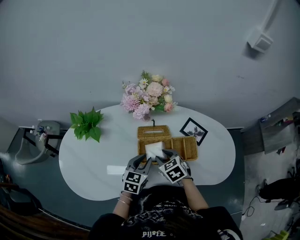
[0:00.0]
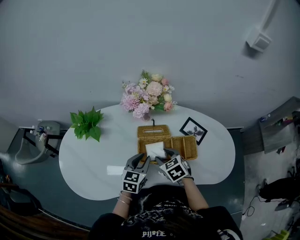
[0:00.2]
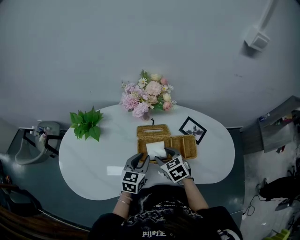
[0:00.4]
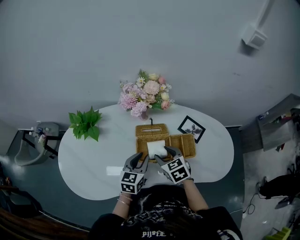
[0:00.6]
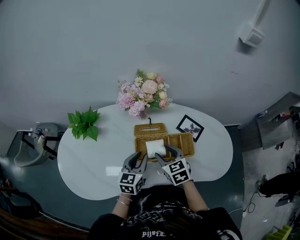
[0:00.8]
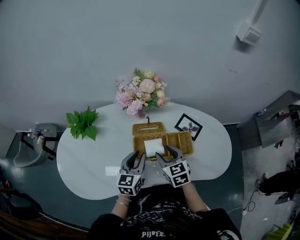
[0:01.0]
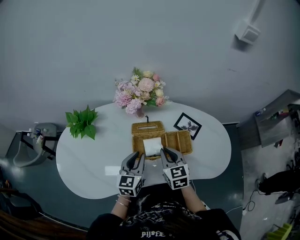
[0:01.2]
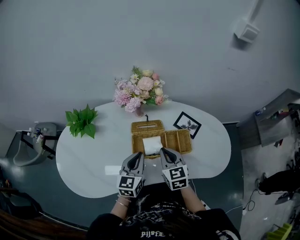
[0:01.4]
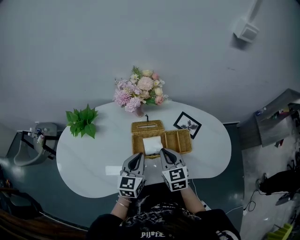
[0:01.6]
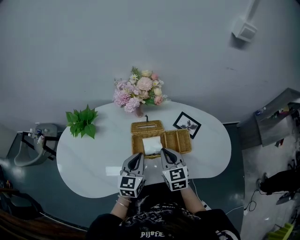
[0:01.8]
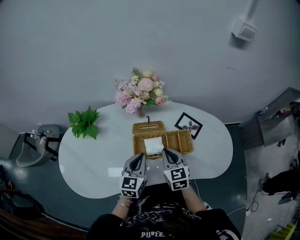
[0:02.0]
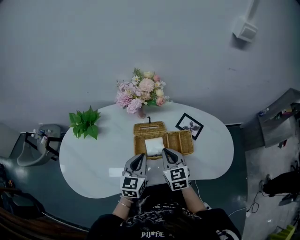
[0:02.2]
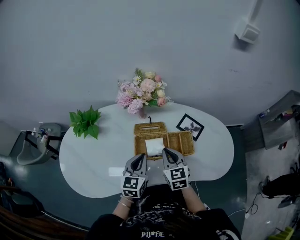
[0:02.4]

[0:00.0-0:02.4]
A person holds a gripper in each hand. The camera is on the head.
0:00.0 to 0:01.2: The right gripper shifts some 5 cm upward, turns by approximately 30 degrees, and closes.
0:01.2 to 0:02.4: The grippers move only a little.

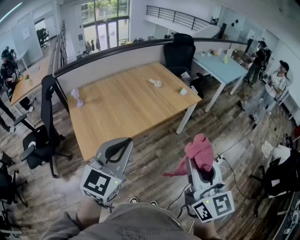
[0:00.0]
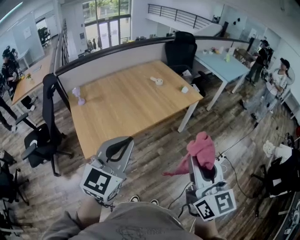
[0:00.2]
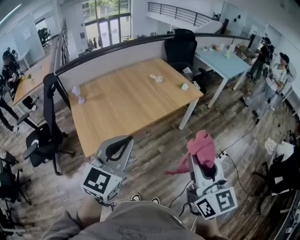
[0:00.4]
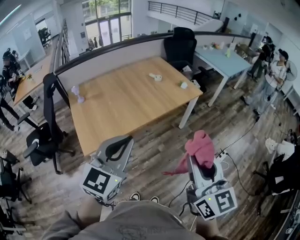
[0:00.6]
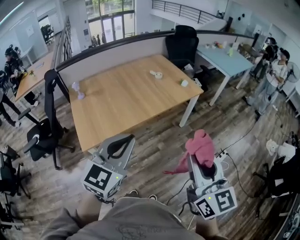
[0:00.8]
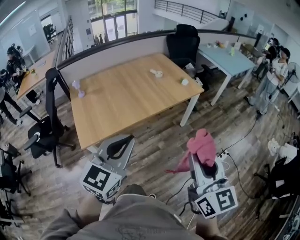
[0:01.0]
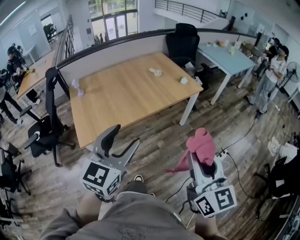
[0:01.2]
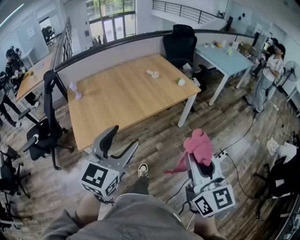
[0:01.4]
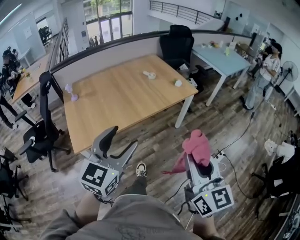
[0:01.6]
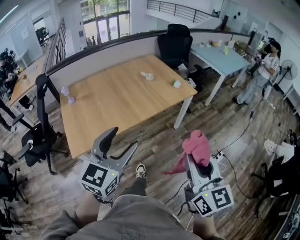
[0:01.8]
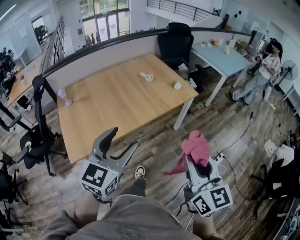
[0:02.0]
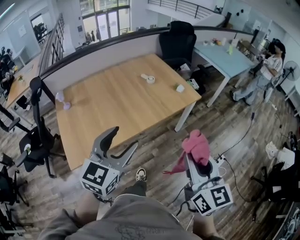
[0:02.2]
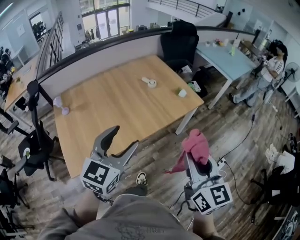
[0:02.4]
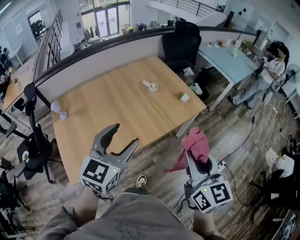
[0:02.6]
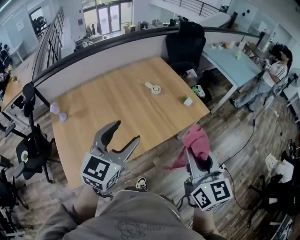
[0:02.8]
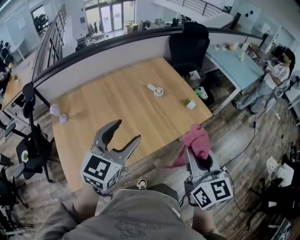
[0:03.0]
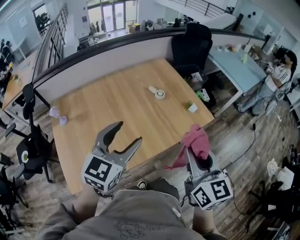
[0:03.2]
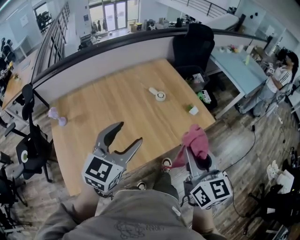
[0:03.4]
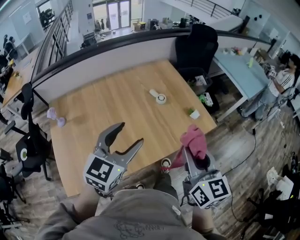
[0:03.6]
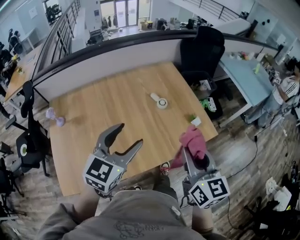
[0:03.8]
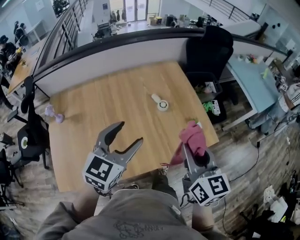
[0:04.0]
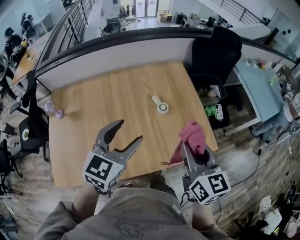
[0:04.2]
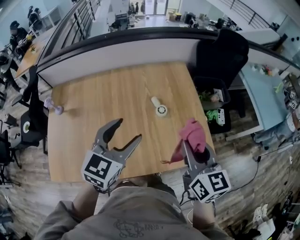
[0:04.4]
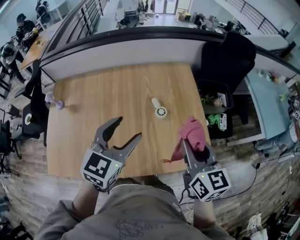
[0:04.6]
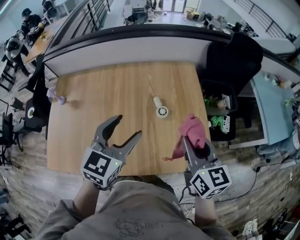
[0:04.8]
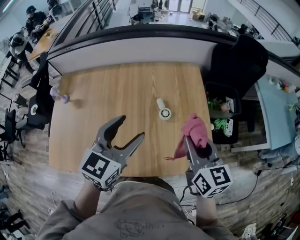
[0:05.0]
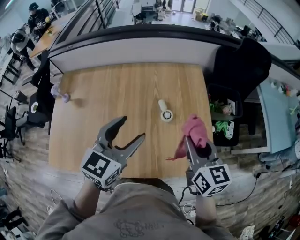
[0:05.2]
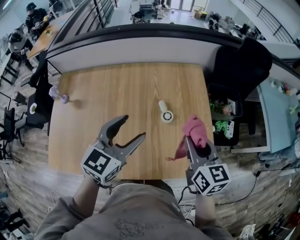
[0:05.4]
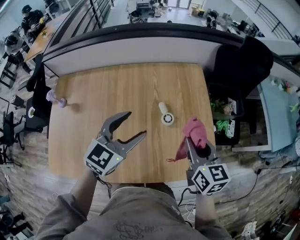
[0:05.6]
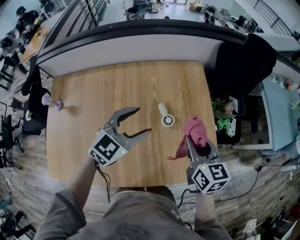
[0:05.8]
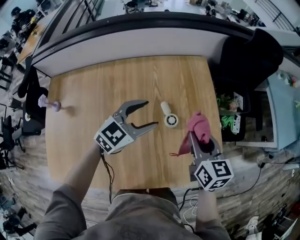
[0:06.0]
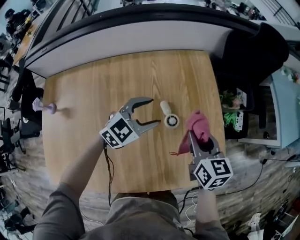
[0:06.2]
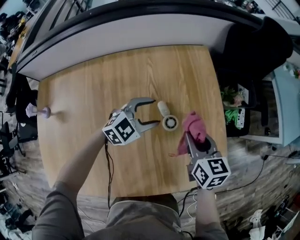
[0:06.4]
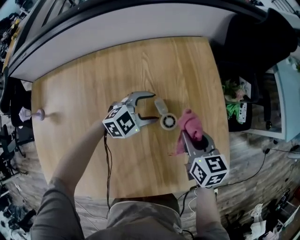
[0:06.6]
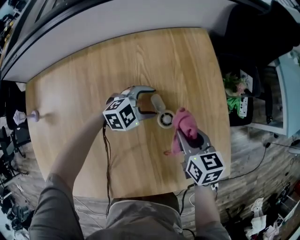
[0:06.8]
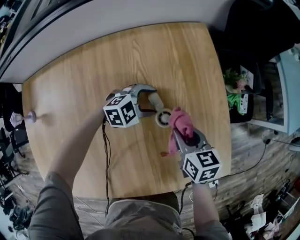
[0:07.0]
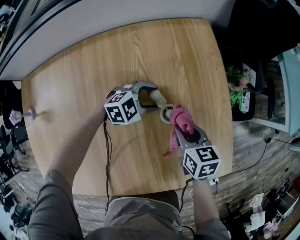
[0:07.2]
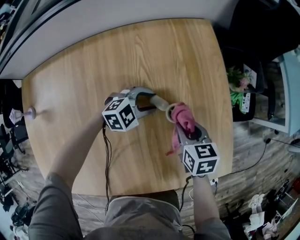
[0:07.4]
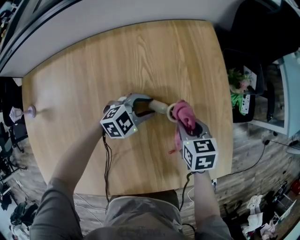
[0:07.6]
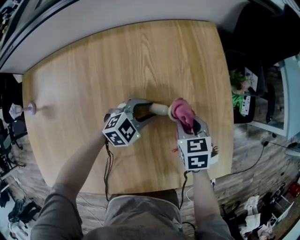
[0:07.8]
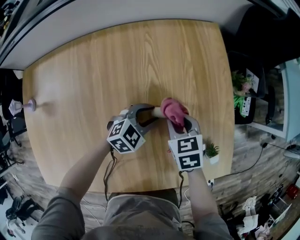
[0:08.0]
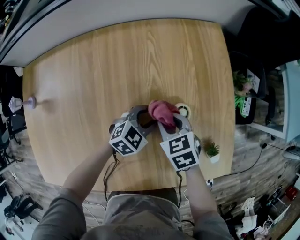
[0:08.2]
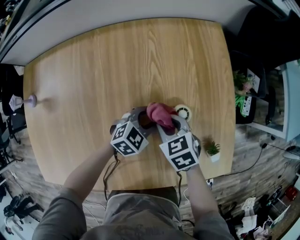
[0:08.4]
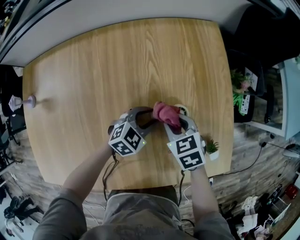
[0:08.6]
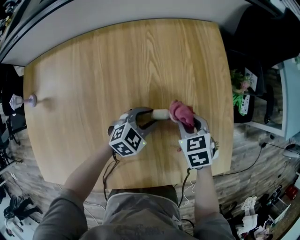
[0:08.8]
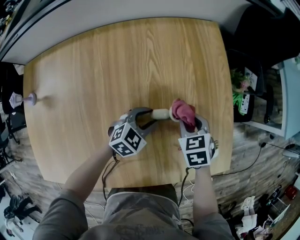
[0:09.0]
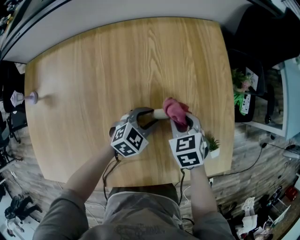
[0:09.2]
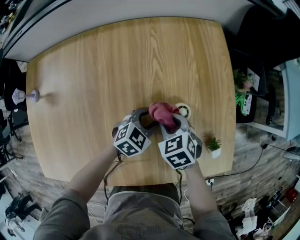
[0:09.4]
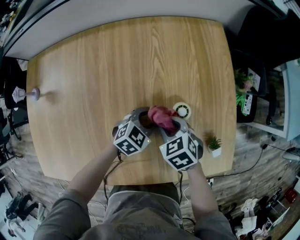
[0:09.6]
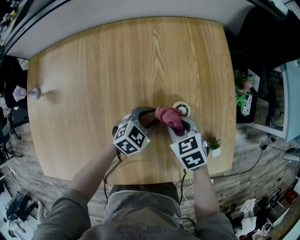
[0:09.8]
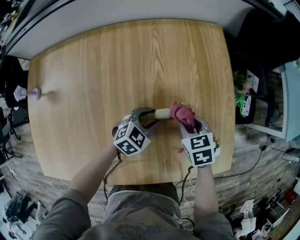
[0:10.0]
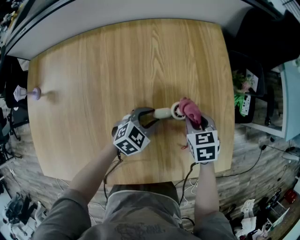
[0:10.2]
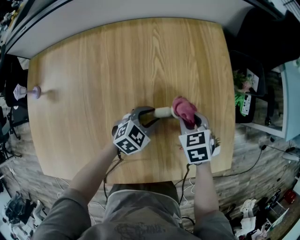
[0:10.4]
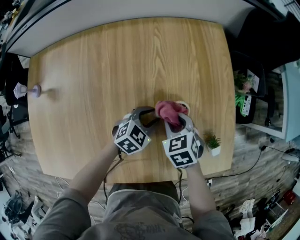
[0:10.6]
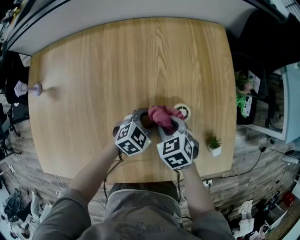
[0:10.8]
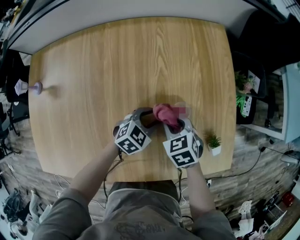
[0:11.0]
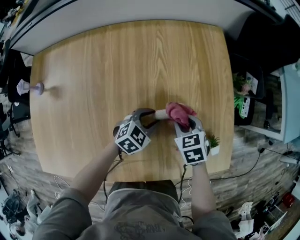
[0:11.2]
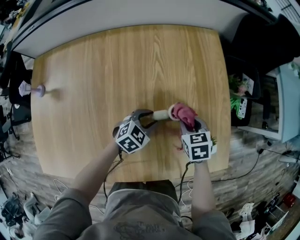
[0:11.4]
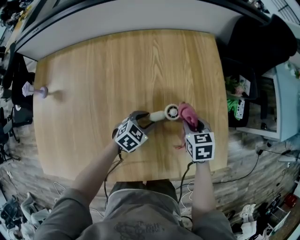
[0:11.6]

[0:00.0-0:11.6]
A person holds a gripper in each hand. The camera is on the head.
0:00.0 to 0:01.4: Both grippers travel together to the right, roughly 10 cm. The left gripper opens up.
0:01.4 to 0:02.8: The grippers both shift forward by roughly 35 cm.
0:02.8 to 0:04.4: Both grippers move forward, roughly 30 cm. The right gripper changes its angle by about 20 degrees.
0:04.4 to 0:05.8: Both grippers move forward and downward, roughly 15 cm.
0:05.8 to 0:07.2: The right gripper moves downward, approximately 25 cm, and rotates about 20 degrees. The left gripper is displaced downward and forward by some 35 cm, and rotates some 40 degrees.
0:07.2 to 0:08.8: The left gripper travels backward by some 10 cm, turns by some 30 degrees, and closes up. The right gripper goes to the left and returns, approximately 10 cm each way, and rotates roughly 30 degrees.
0:08.8 to 0:10.2: The right gripper travels to the left and back again, approximately 5 cm each way.
0:10.2 to 0:11.6: The right gripper moves approximately 10 cm to the left and comes back.

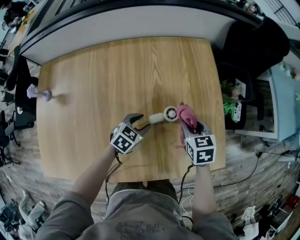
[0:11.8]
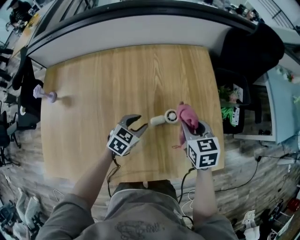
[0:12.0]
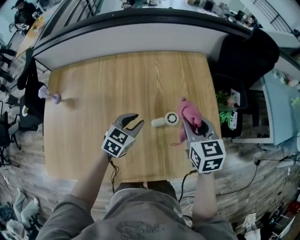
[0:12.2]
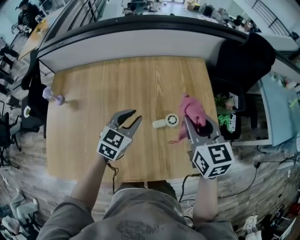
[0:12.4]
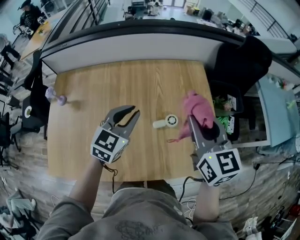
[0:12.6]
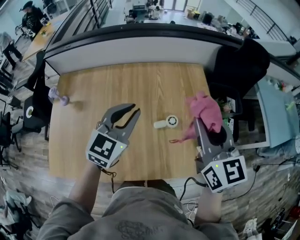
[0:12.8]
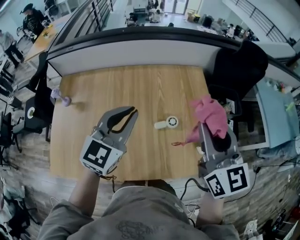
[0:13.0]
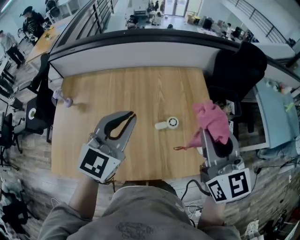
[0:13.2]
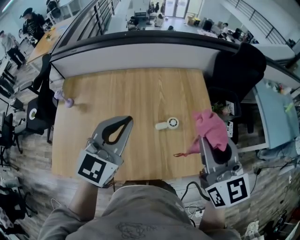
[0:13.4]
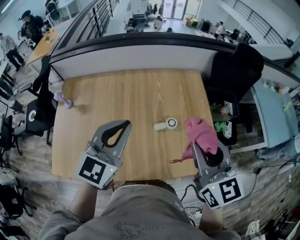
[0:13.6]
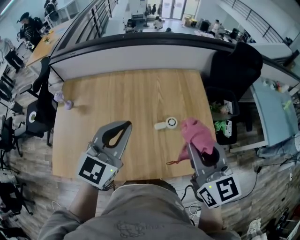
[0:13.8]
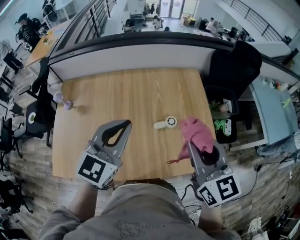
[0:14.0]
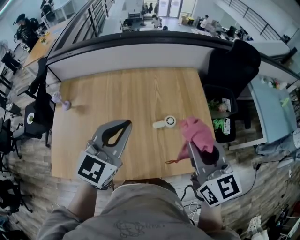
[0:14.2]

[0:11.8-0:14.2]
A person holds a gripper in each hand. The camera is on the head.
0:11.8 to 0:13.0: The grippers both shift upward by approximately 35 cm. The left gripper tilts its fingers some 40 degrees upward, and closes up. Meanwhile the right gripper angles its fingers upward, by some 40 degrees.
0:13.0 to 0:14.2: Both grippers move backward, roughly 5 cm.

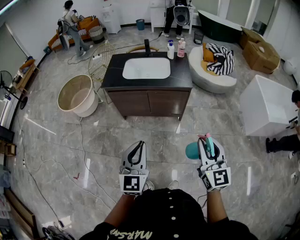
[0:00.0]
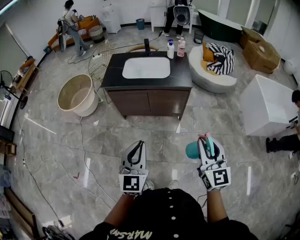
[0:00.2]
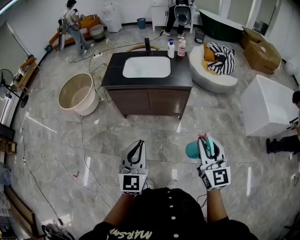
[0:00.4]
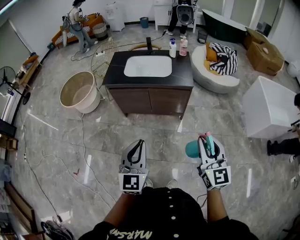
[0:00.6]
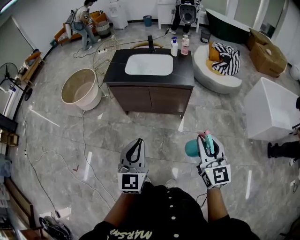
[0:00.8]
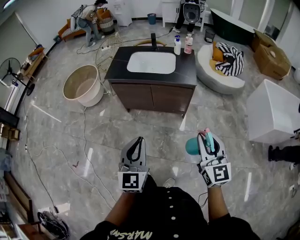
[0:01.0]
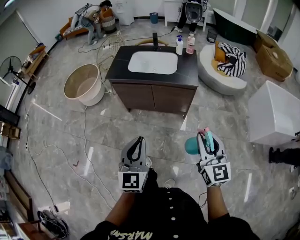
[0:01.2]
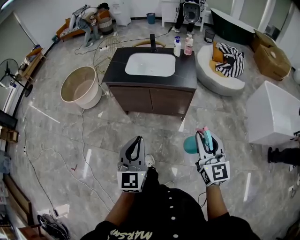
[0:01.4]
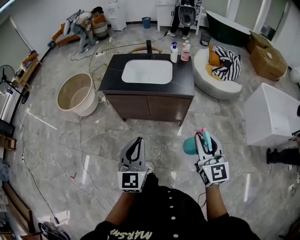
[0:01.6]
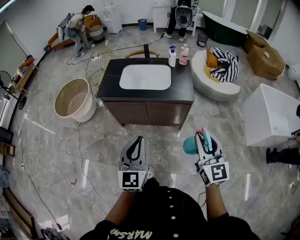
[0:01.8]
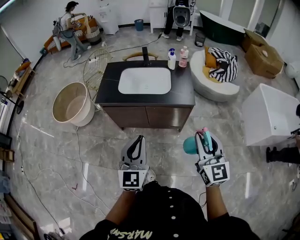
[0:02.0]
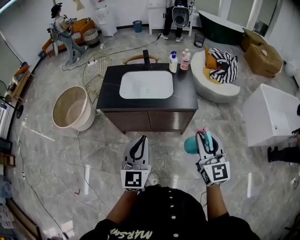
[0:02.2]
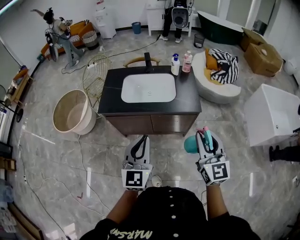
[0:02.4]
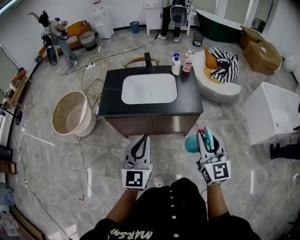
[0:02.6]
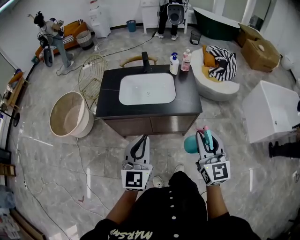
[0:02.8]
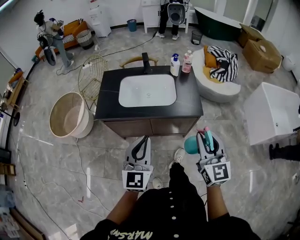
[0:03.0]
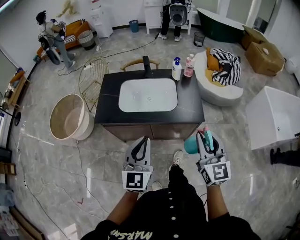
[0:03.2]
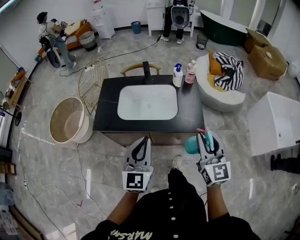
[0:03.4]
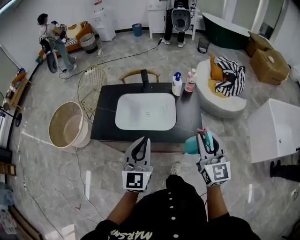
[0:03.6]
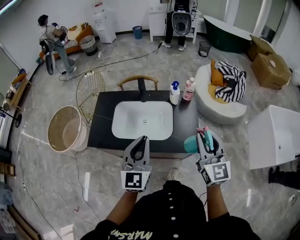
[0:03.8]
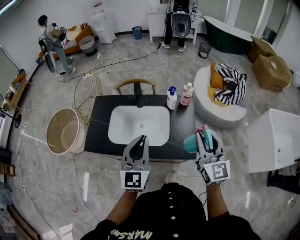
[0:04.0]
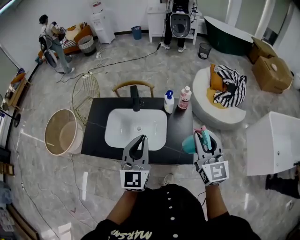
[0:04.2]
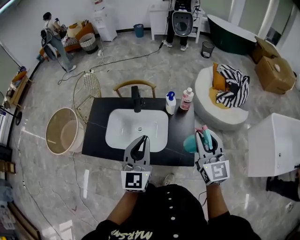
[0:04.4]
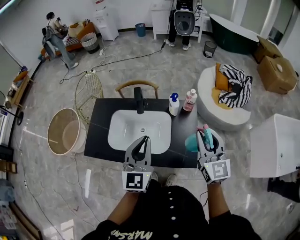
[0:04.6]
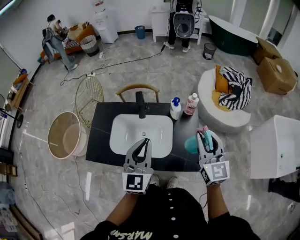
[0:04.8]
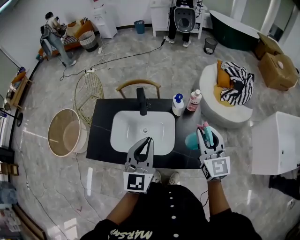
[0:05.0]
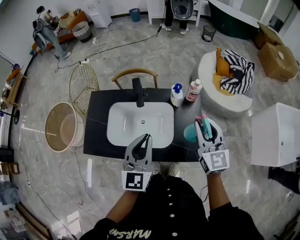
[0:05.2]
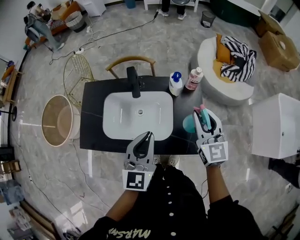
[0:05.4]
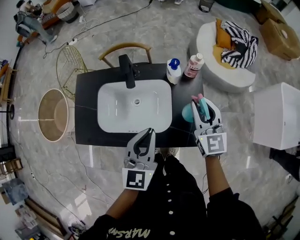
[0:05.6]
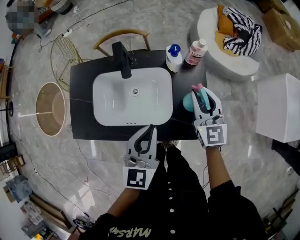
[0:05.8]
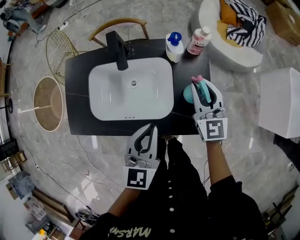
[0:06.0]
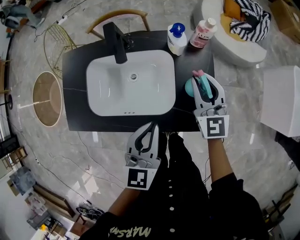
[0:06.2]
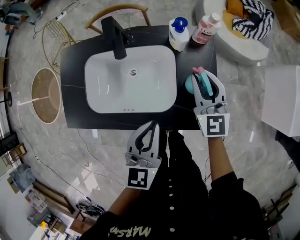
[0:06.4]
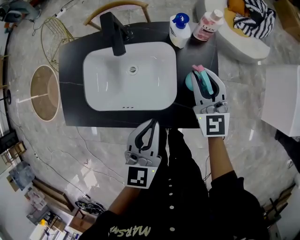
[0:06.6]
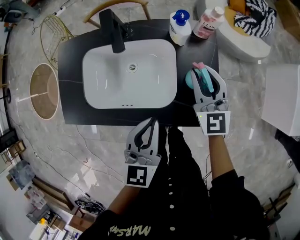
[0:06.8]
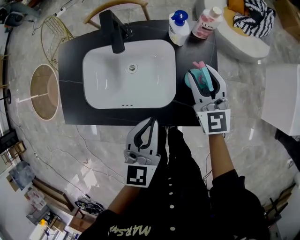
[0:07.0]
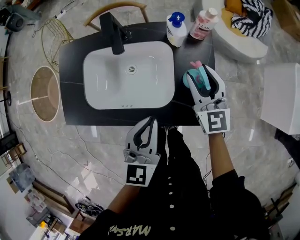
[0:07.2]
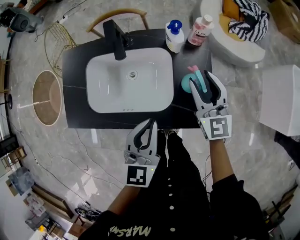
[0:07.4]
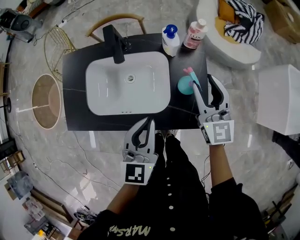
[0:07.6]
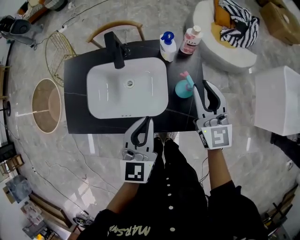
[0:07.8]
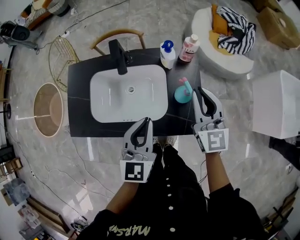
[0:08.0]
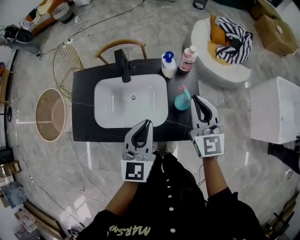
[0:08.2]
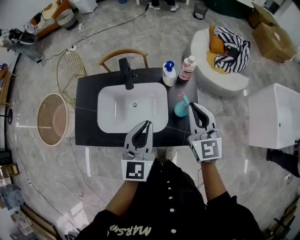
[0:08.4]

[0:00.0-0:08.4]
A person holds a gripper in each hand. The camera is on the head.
0:00.0 to 0:01.4: The right gripper moves forward, about 5 cm; the left gripper shifts by approximately 5 cm.
0:01.4 to 0:02.8: The two grippers go approximately 25 cm forward.
0:02.8 to 0:04.2: Both grippers move forward, about 30 cm.
0:04.2 to 0:05.6: The left gripper shifts some 10 cm downward and forward. Meanwhile the right gripper is displaced forward and downward by about 20 cm.
0:05.6 to 0:07.0: Both grippers move downward, about 10 cm.
0:07.0 to 0:08.4: Both grippers travel together upward, some 15 cm. The right gripper closes.
